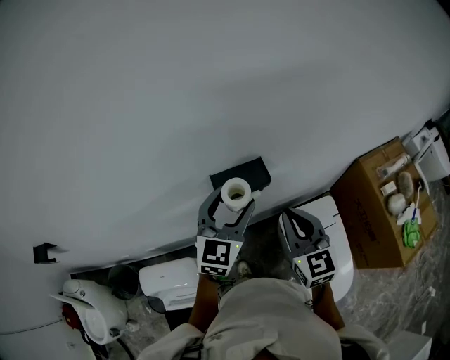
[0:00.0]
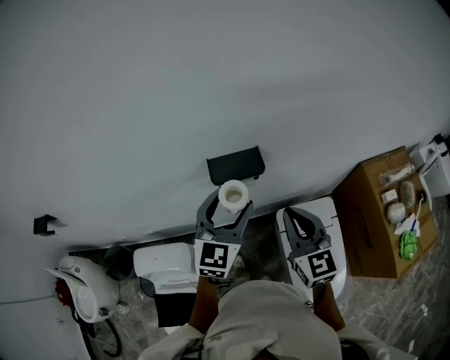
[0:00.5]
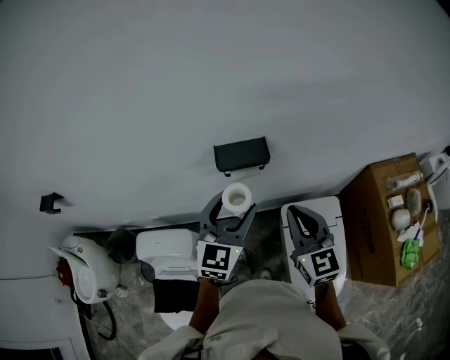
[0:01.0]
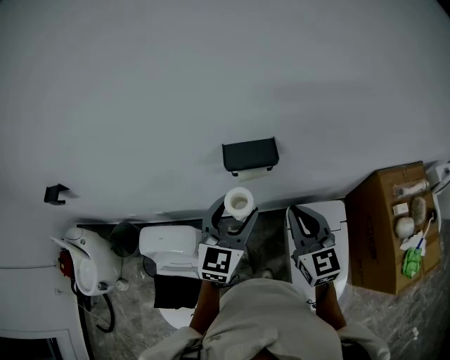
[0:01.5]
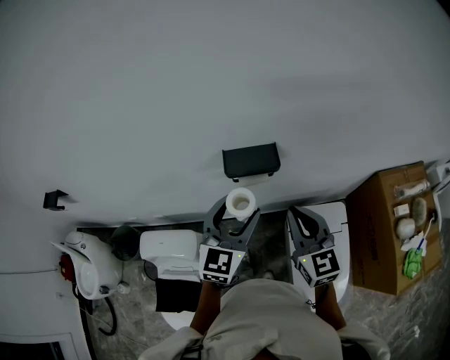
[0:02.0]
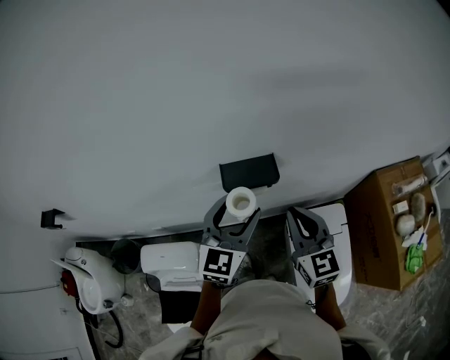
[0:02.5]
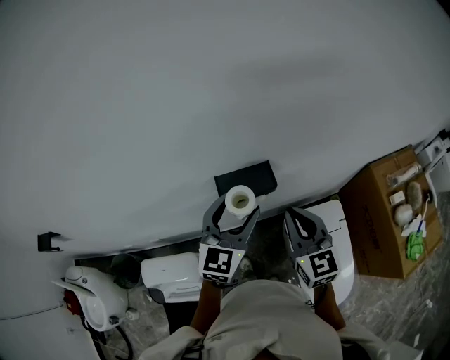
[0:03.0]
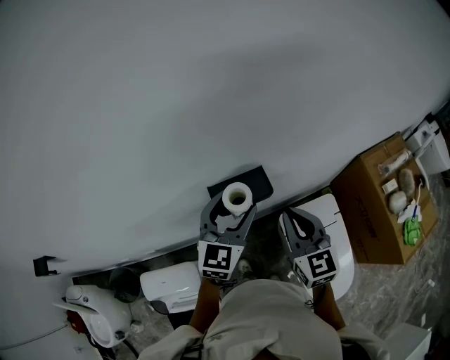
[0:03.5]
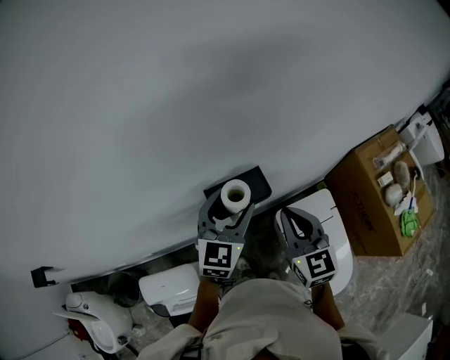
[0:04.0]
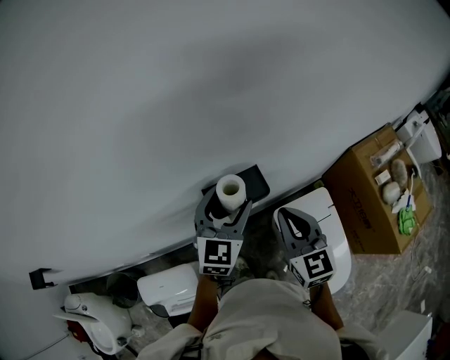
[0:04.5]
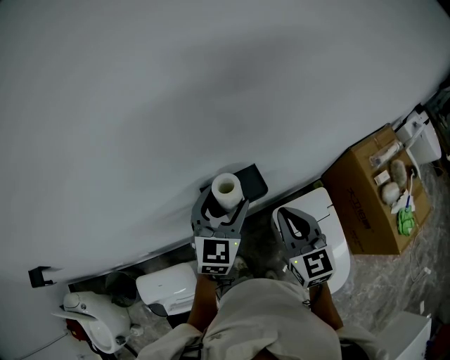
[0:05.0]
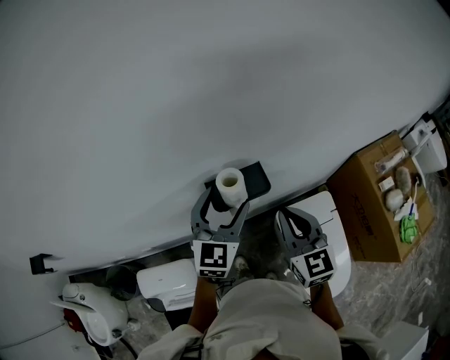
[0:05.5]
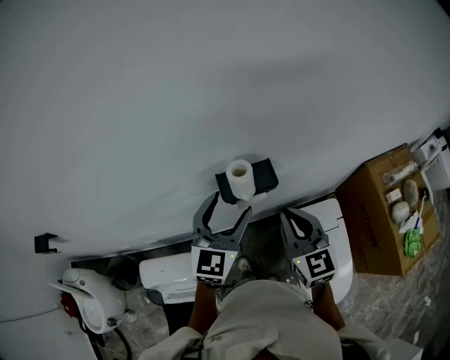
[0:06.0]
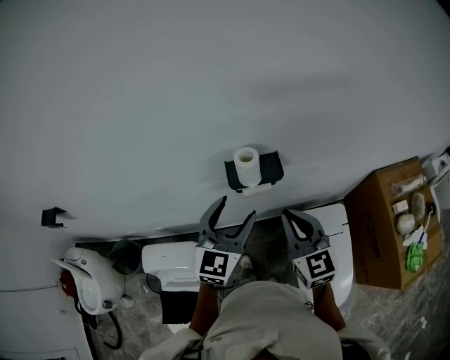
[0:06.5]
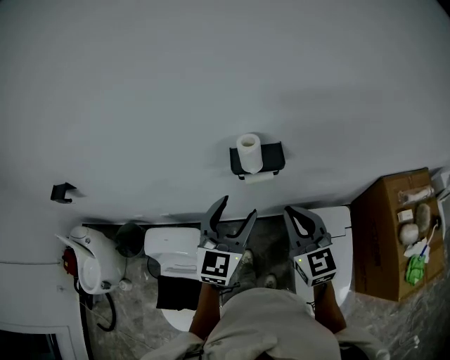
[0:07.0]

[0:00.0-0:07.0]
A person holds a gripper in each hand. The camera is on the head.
0:00.0 to 0:02.0: The left gripper moves backward, about 5 cm.
0:02.0 to 0:03.5: The right gripper is displaced forward by about 5 cm. The left gripper is displaced forward by about 10 cm.
0:03.5 to 0:05.0: The grippers stay close to where they were, moving slightly.
0:05.0 to 0:07.0: The left gripper shifts roughly 15 cm backward. The right gripper moves backward, some 10 cm, and rotates roughly 20 degrees.

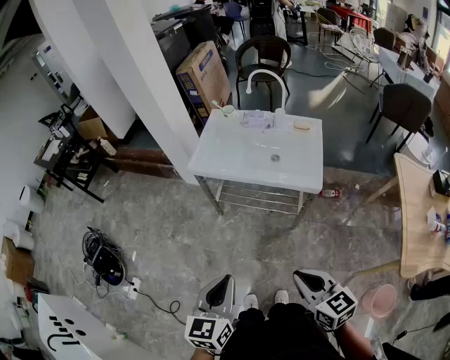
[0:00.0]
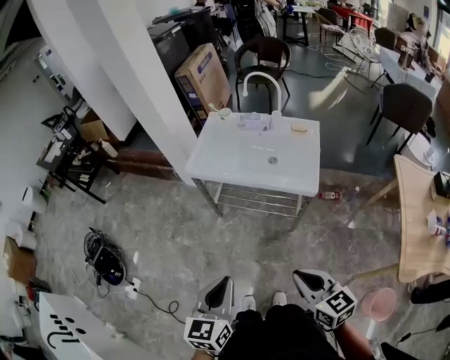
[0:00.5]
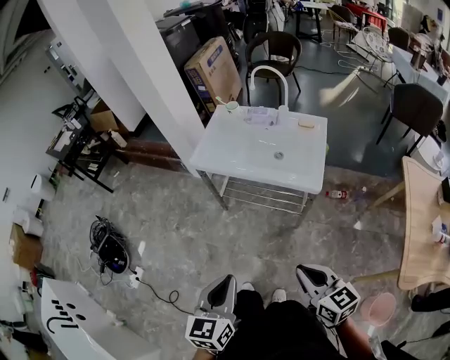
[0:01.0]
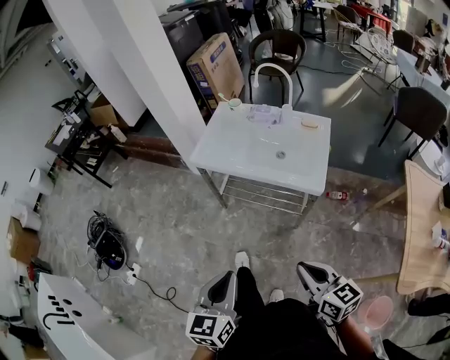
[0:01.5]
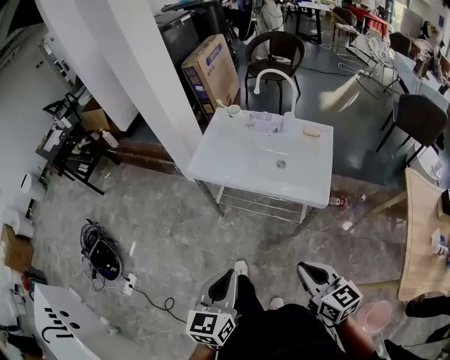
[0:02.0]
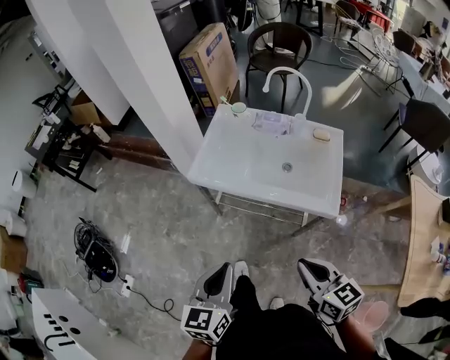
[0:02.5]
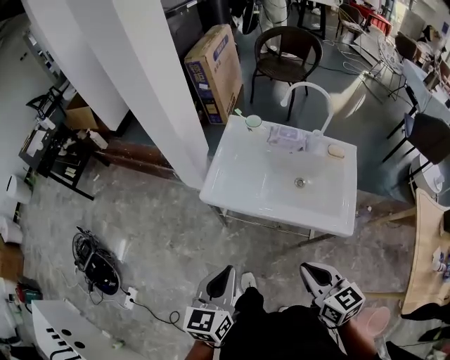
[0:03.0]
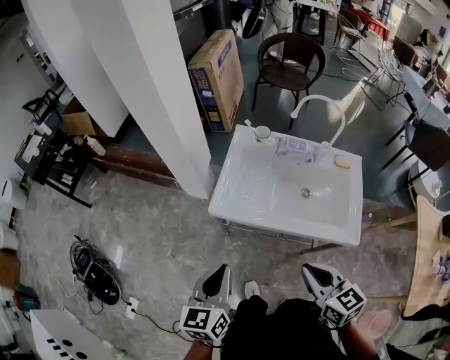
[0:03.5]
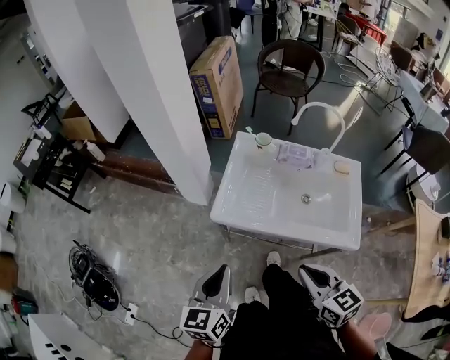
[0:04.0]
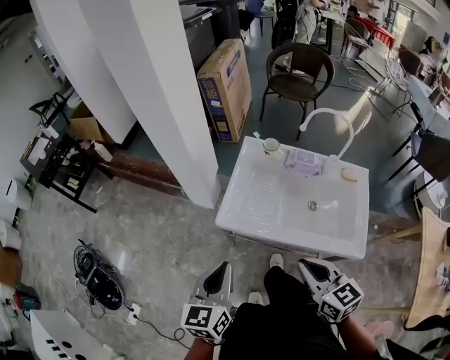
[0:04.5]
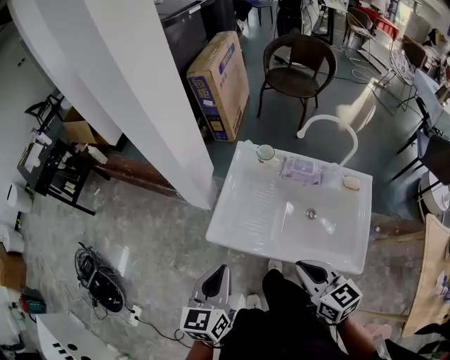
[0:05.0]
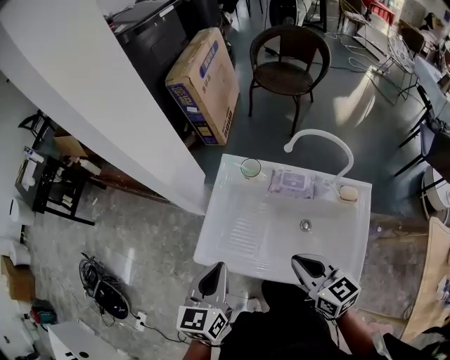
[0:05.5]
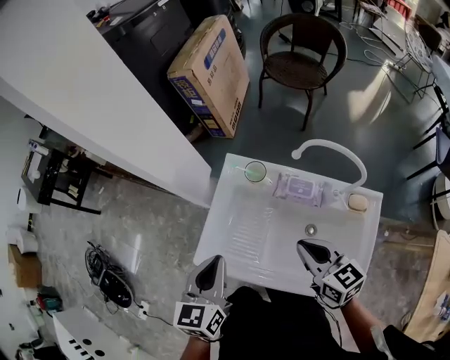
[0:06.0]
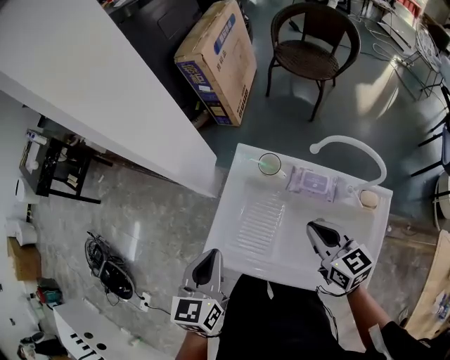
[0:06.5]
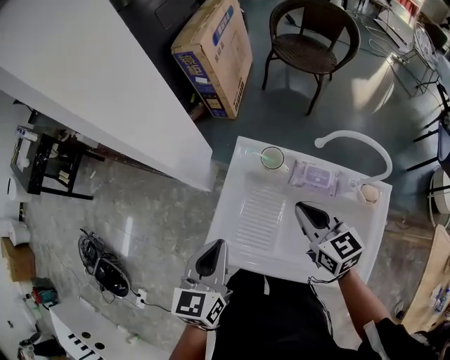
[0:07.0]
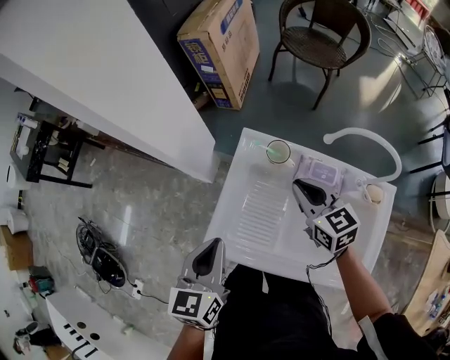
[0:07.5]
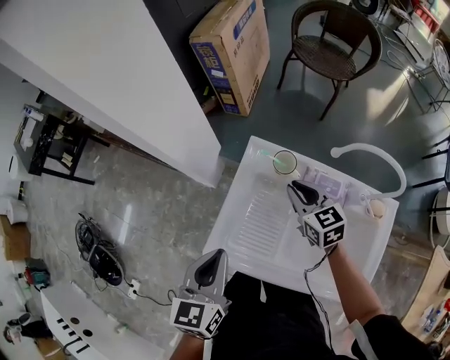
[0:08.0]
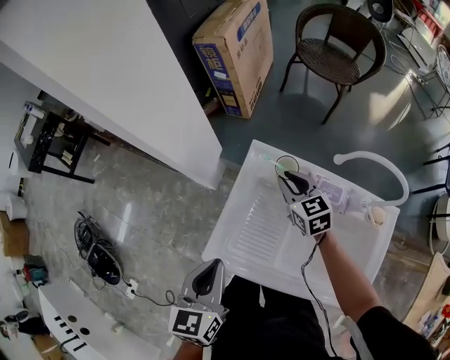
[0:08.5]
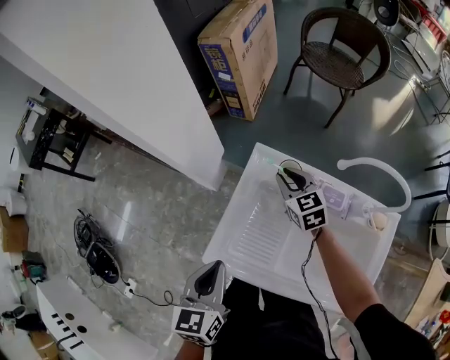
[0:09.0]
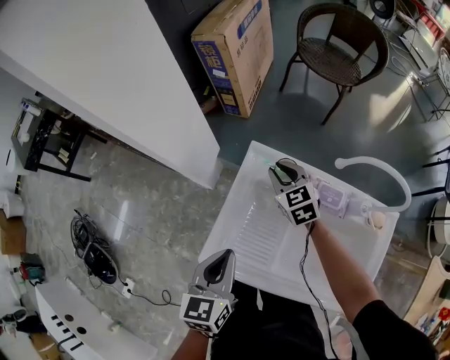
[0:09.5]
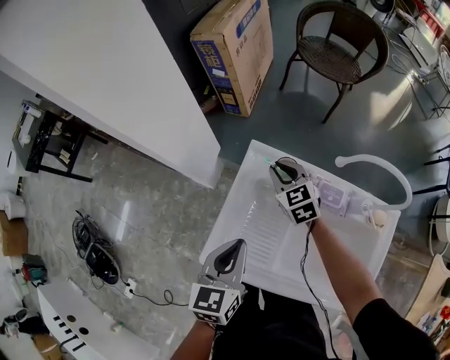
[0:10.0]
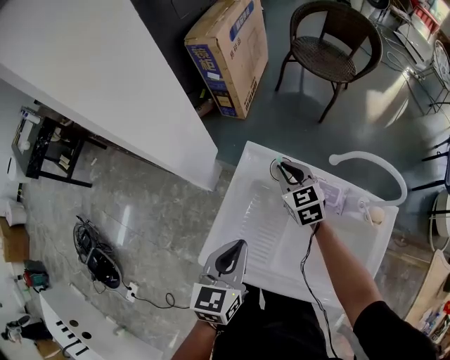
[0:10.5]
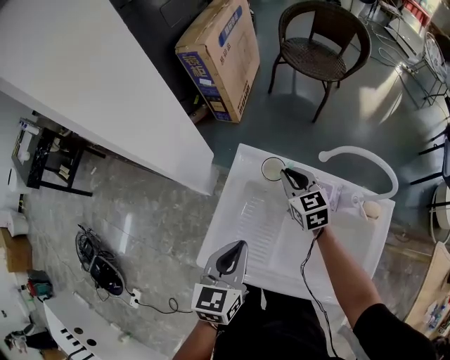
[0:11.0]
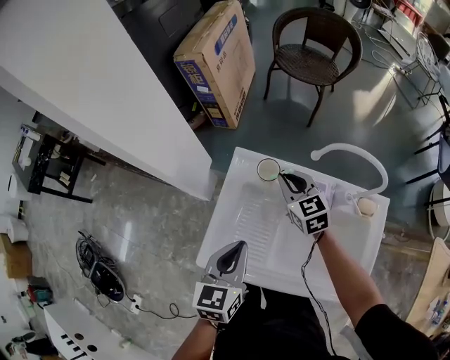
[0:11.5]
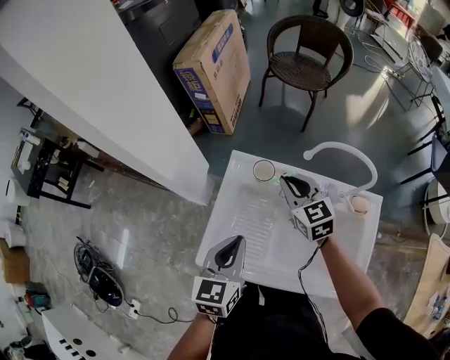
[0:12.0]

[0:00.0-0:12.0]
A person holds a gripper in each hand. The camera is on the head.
0:00.0 to 0:02.0: The right gripper moves forward and to the right, roughly 10 cm, while the left gripper heads forward, covering about 5 cm.
0:02.0 to 0:04.0: Both grippers travel together forward and to the left, about 30 cm.
0:04.0 to 0:06.0: Both grippers move forward and to the right, approximately 30 cm.
0:06.0 to 0:08.0: The left gripper goes roughly 5 cm to the left; the right gripper heads forward and downward, covering some 20 cm.
0:08.0 to 0:10.0: The right gripper shifts some 10 cm forward. The left gripper is displaced to the right by approximately 5 cm.
0:10.0 to 0:12.0: The right gripper is displaced upward, to the right and backward by approximately 15 cm, while the left gripper ends up roughly 5 cm from where it was.

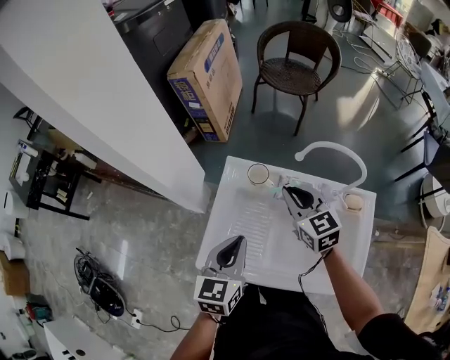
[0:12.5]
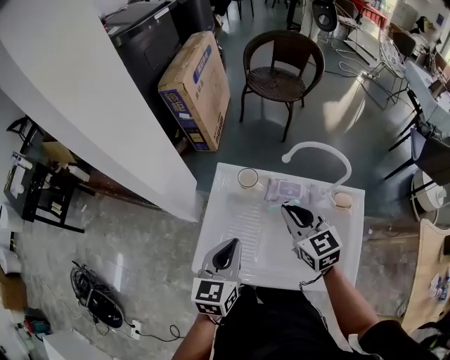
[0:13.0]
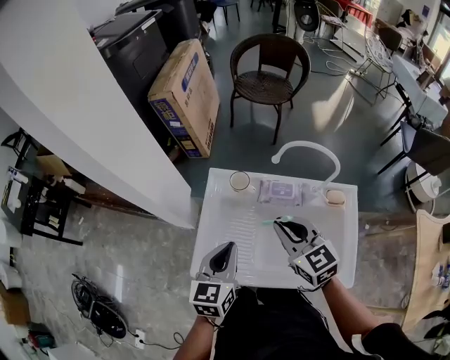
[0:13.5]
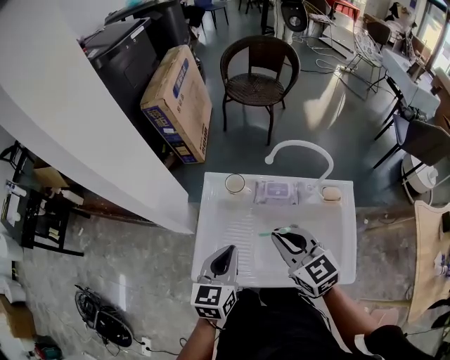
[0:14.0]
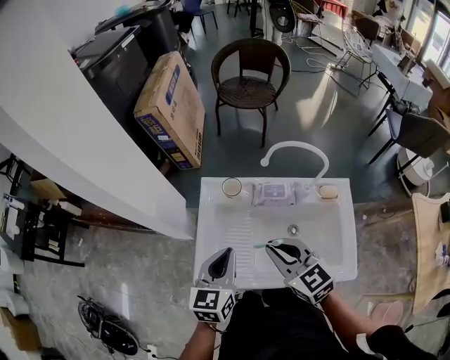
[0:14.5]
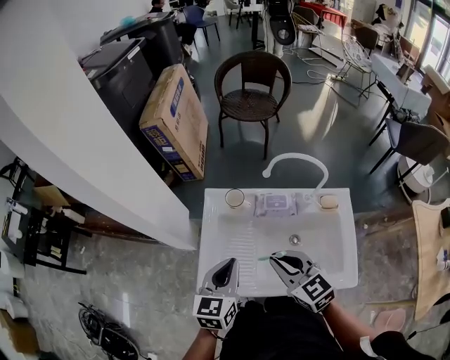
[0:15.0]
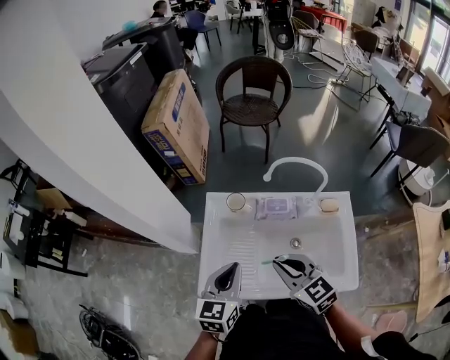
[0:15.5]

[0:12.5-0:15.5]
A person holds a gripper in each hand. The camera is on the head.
0:12.5 to 0:14.0: The right gripper shifts approximately 15 cm backward.
0:14.0 to 0:15.5: The grippers stay close to where they were, moving slightly.

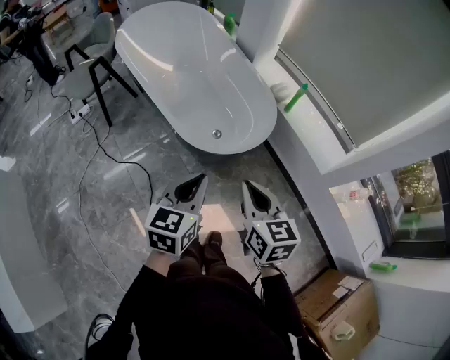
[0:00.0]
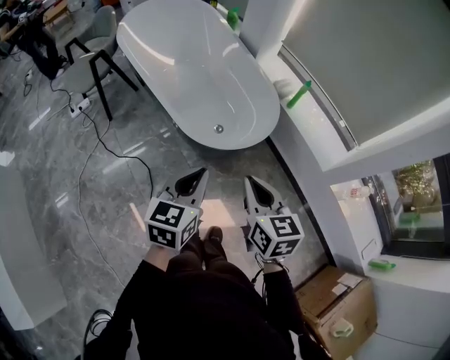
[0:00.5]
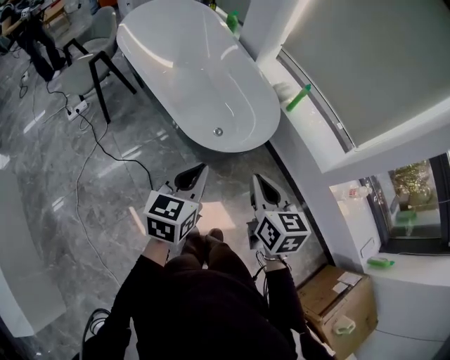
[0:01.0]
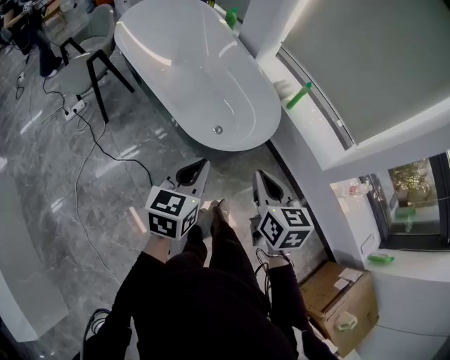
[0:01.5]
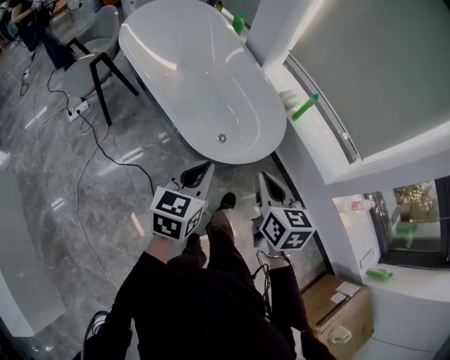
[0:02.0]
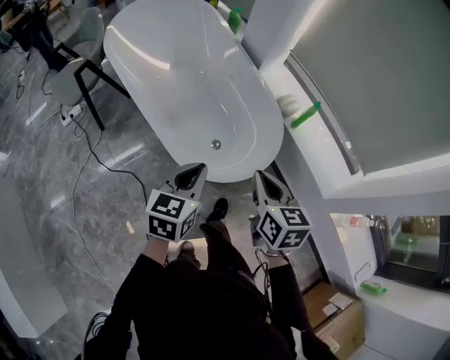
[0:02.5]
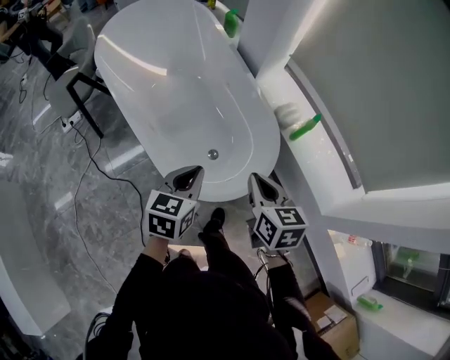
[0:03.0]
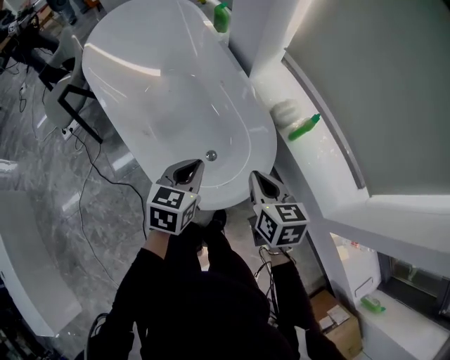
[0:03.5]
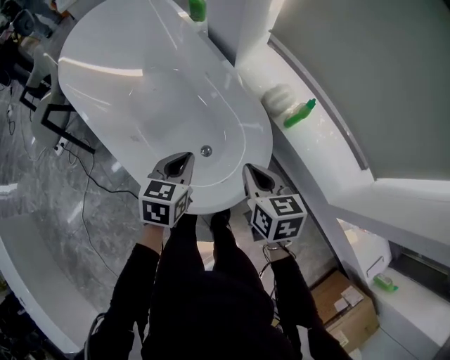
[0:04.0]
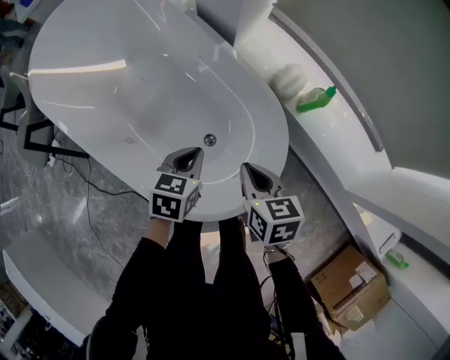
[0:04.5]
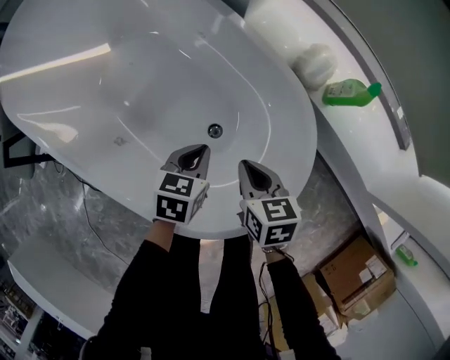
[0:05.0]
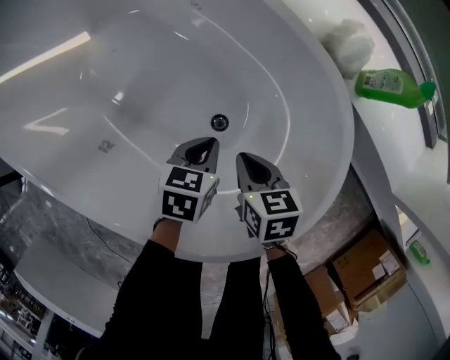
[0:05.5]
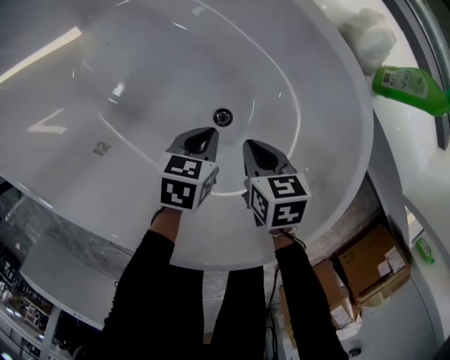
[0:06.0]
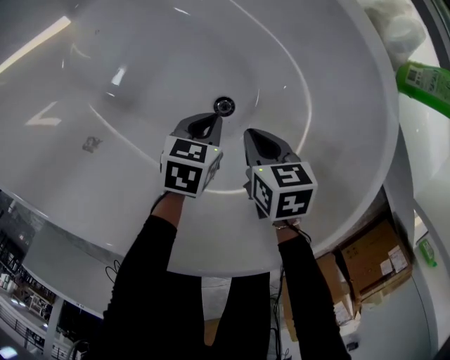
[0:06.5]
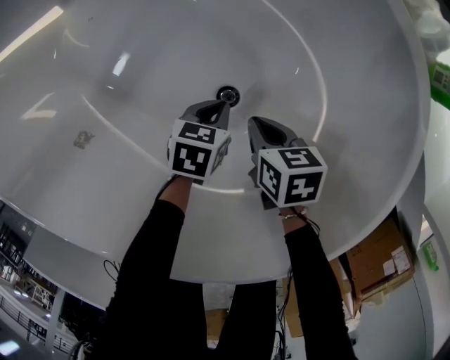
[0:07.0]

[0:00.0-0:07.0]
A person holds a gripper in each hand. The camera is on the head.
0:00.0 to 0:02.0: Both grippers move forward, roughly 10 cm.
0:02.0 to 0:03.5: The left gripper travels forward by roughly 25 cm. The right gripper moves forward and to the right, roughly 25 cm.
0:03.5 to 0:05.0: Both grippers move downward and forward, approximately 25 cm. The right gripper rotates about 20 degrees; the left gripper swivels some 30 degrees.
0:05.0 to 0:07.0: Both grippers travel together downward, some 30 cm.
